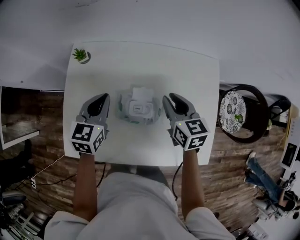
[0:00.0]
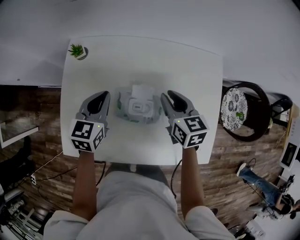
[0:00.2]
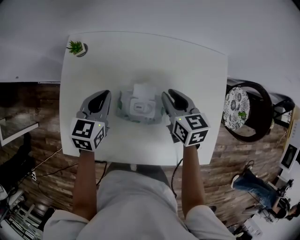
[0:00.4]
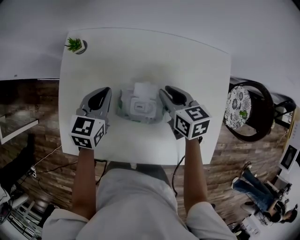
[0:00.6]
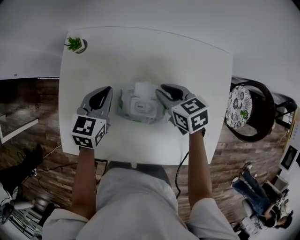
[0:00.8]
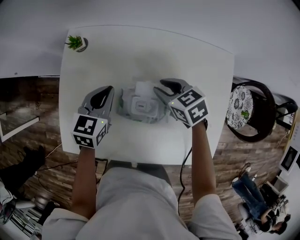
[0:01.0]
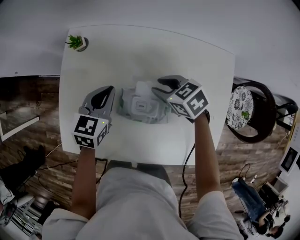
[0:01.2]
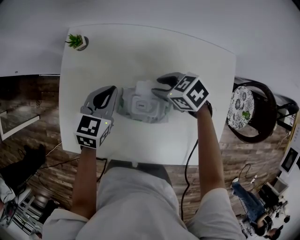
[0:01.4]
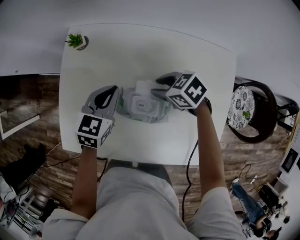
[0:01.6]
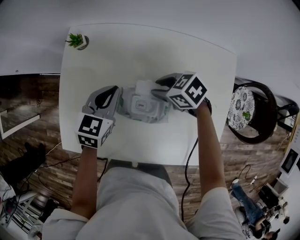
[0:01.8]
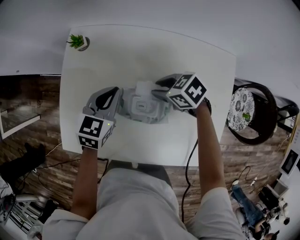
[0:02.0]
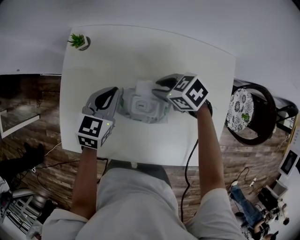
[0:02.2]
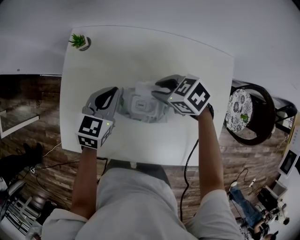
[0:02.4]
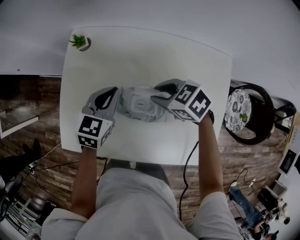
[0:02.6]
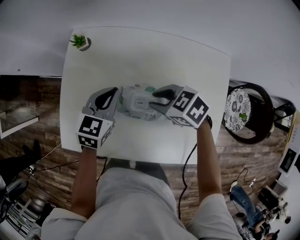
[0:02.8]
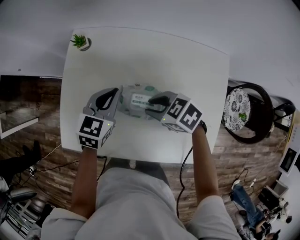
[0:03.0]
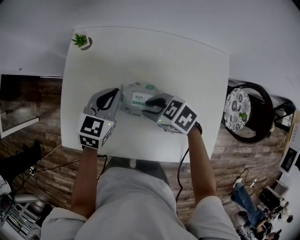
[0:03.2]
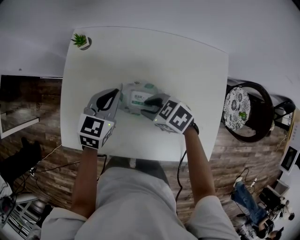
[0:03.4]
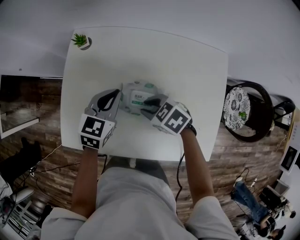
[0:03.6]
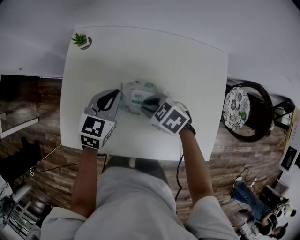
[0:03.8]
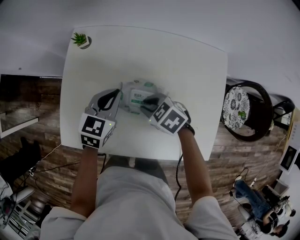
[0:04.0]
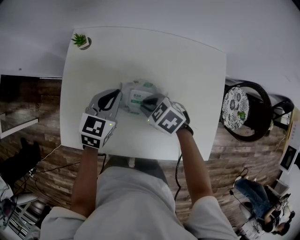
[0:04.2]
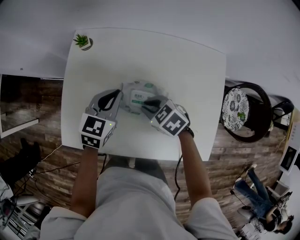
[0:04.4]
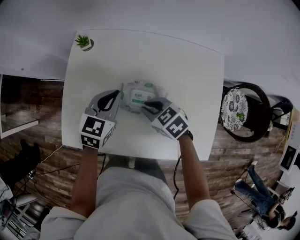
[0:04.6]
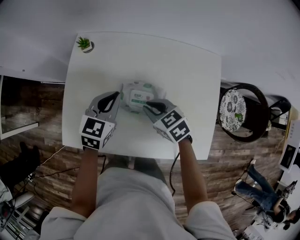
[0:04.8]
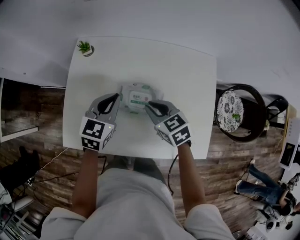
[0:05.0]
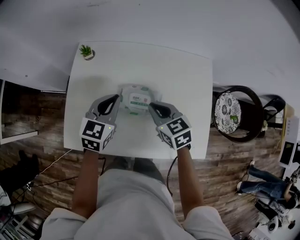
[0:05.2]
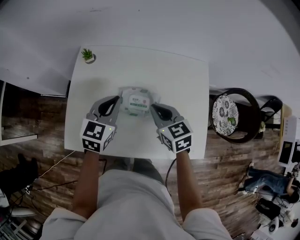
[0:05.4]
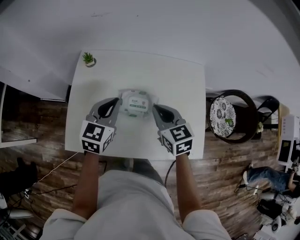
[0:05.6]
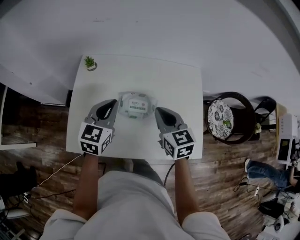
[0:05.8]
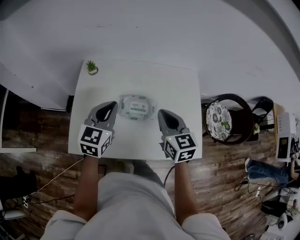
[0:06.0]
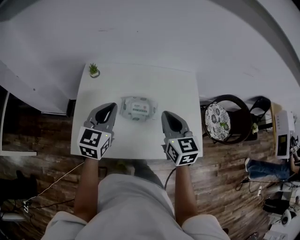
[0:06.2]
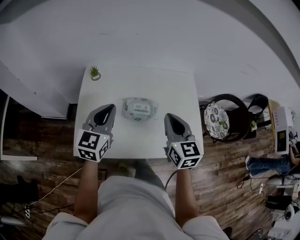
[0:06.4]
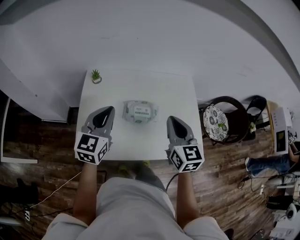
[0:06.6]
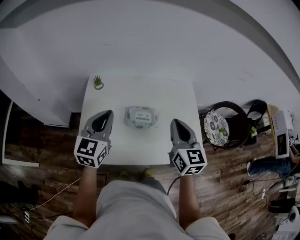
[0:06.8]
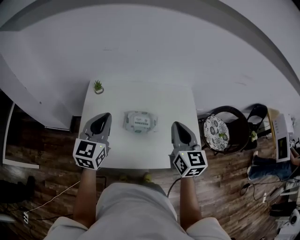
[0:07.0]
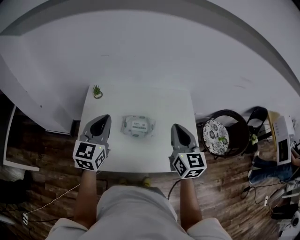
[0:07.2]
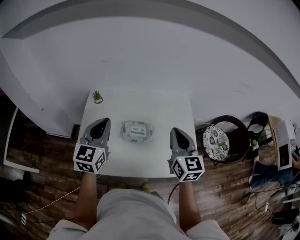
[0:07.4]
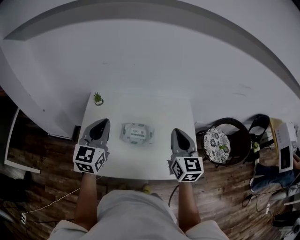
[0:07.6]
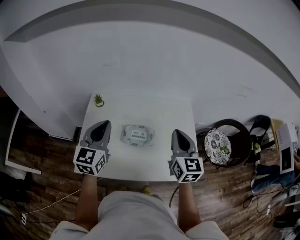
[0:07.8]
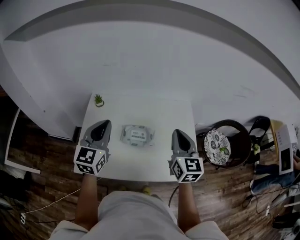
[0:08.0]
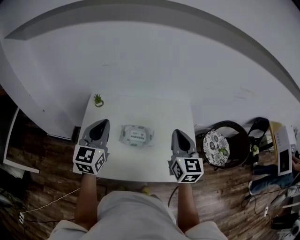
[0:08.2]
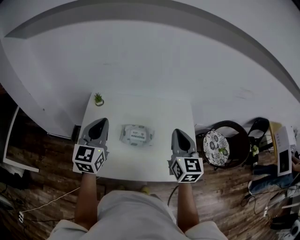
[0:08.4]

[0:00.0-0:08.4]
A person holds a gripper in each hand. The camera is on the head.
0:00.0 to 0:01.4: The right gripper goes approximately 10 cm downward, and rotates roughly 50 degrees. Meanwhile the left gripper shifts about 5 cm downward.
0:01.4 to 0:02.8: The right gripper is displaced upward by some 5 cm.
0:02.8 to 0:04.2: The right gripper shifts by roughly 5 cm.
0:04.2 to 0:05.6: The right gripper shifts roughly 15 cm upward, and turns by roughly 50 degrees; the left gripper heads upward and backward, covering about 10 cm.
0:05.6 to 0:07.0: The left gripper heads upward, backward and to the left, covering some 15 cm. Meanwhile the right gripper heads upward and backward, covering about 15 cm, and turns by about 30 degrees.
0:07.0 to 0:08.4: The right gripper changes place by some 5 cm.

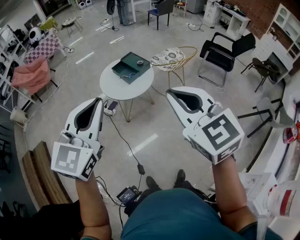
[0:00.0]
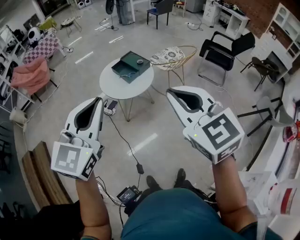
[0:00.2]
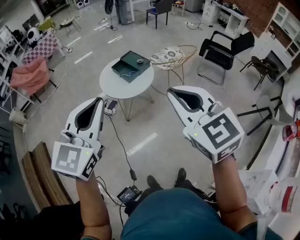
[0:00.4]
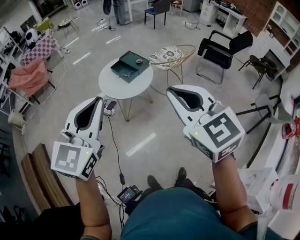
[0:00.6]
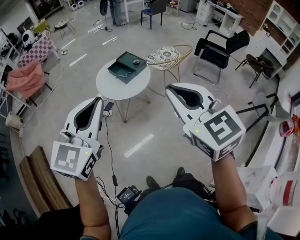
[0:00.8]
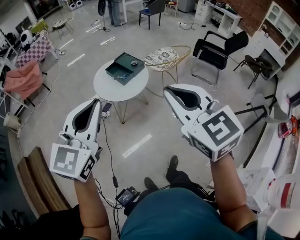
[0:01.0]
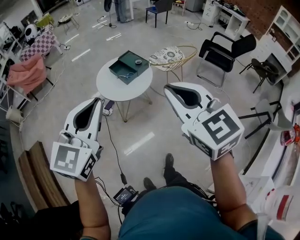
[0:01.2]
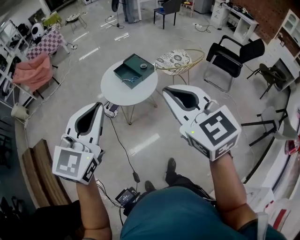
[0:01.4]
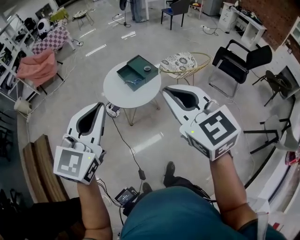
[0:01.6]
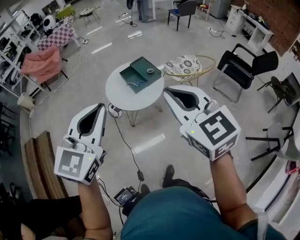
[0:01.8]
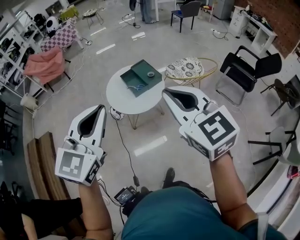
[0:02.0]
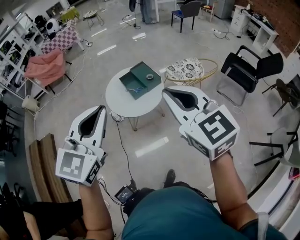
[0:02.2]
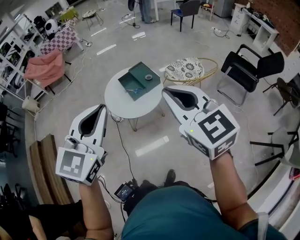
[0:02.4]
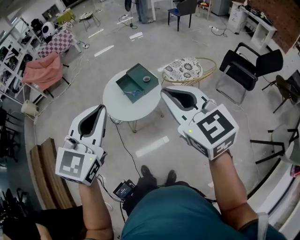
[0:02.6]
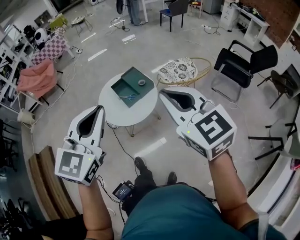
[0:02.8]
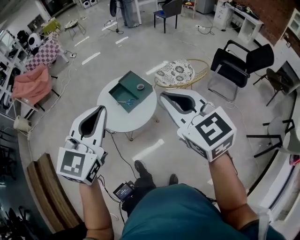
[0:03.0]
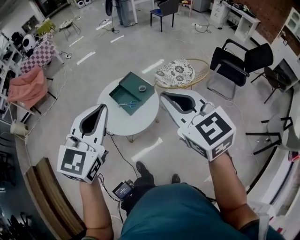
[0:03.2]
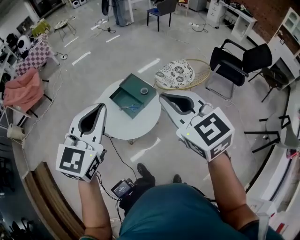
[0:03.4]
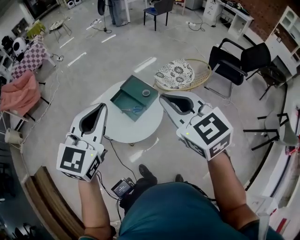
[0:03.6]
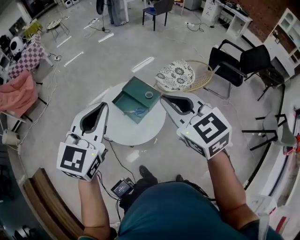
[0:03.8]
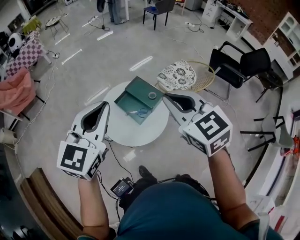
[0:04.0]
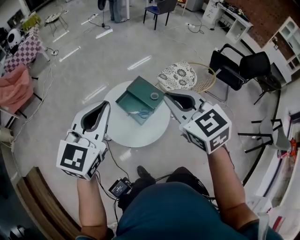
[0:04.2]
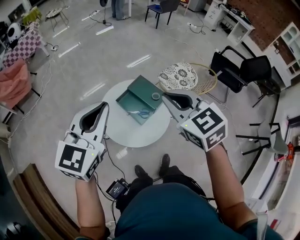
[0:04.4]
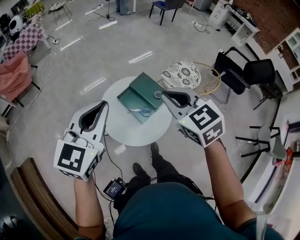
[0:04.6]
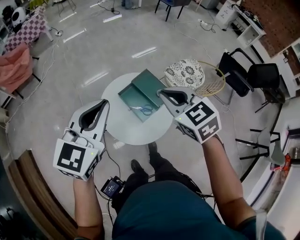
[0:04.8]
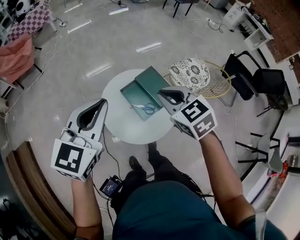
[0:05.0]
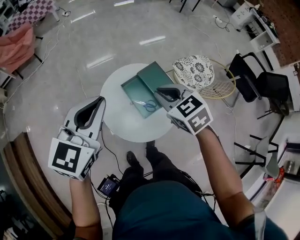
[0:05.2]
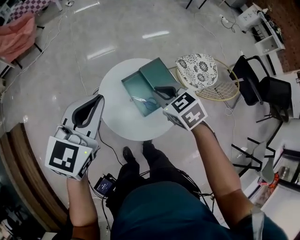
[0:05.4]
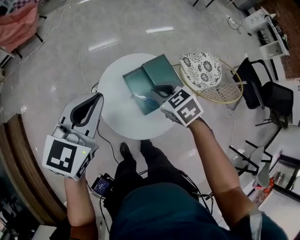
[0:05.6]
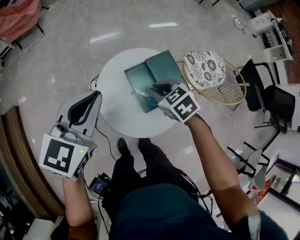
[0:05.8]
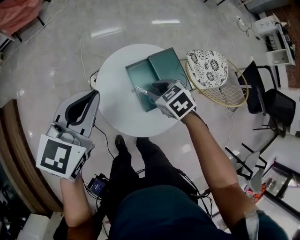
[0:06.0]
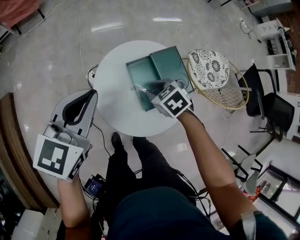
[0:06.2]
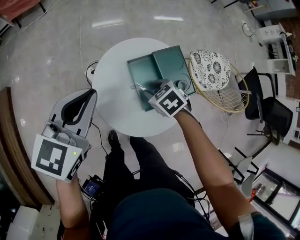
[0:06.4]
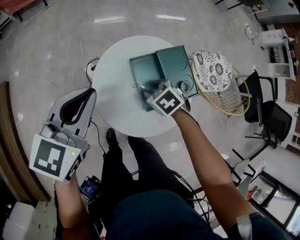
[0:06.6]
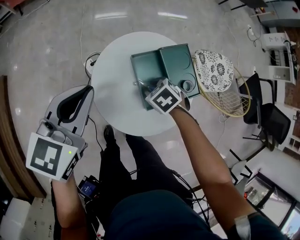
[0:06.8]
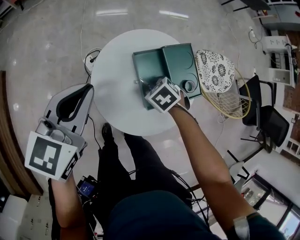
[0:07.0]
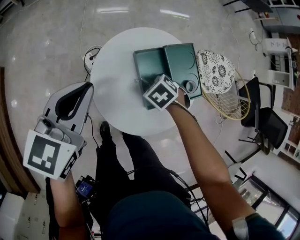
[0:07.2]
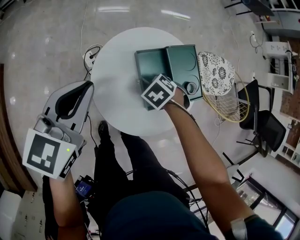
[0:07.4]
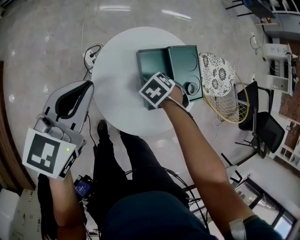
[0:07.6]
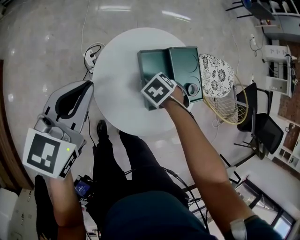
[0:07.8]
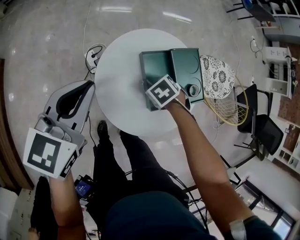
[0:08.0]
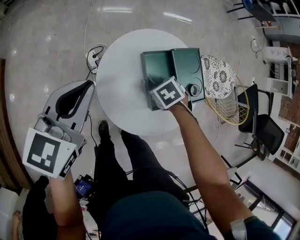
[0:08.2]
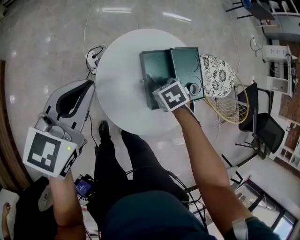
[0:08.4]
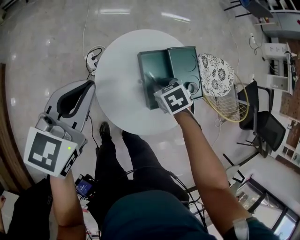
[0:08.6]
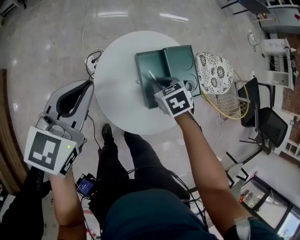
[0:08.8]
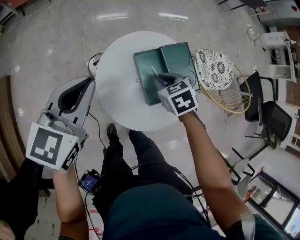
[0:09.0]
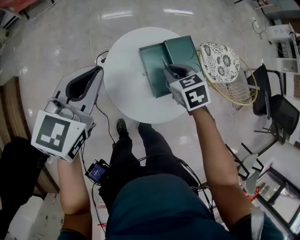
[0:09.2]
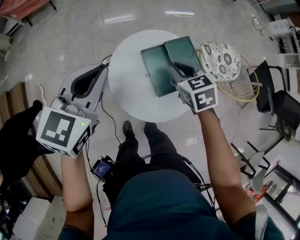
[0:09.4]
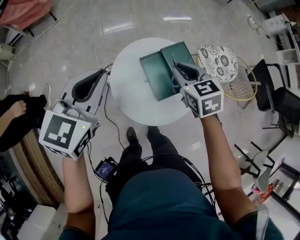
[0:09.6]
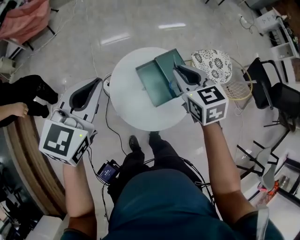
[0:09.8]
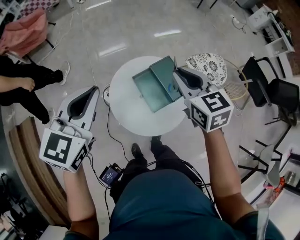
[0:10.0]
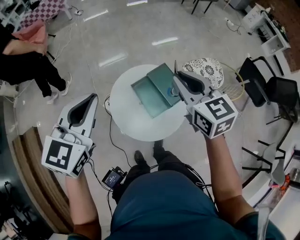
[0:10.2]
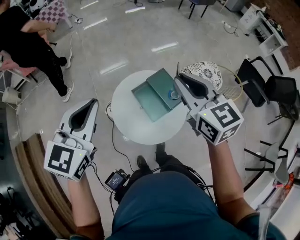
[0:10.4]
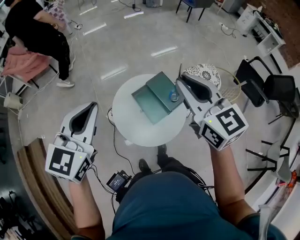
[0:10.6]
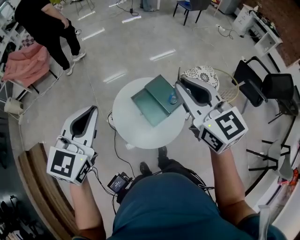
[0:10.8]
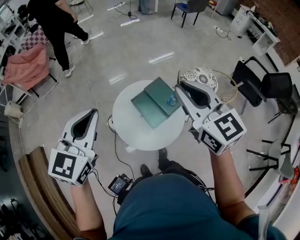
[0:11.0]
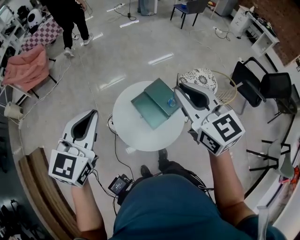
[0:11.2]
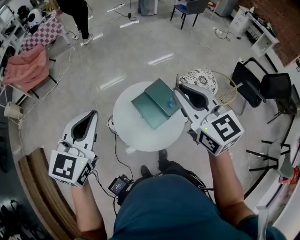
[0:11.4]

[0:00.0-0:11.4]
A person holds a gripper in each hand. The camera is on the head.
0:00.0 to 0:01.4: The grippers both shift forward by roughly 15 cm.
0:01.4 to 0:02.8: Both grippers move forward and to the right, approximately 35 cm.
0:02.8 to 0:04.2: The pair of grippers is taken to the left and forward, about 60 cm.
0:04.2 to 0:05.6: The grippers both shift downward and forward by about 40 cm. The right gripper swivels some 40 degrees. The left gripper rotates approximately 20 degrees.
0:05.6 to 0:07.2: Both grippers travel together downward, roughly 25 cm. The right gripper swivels some 30 degrees, and opens.
0:07.2 to 0:08.6: The grippers move only a little.
0:08.6 to 0:10.0: The two grippers go roughly 40 cm upward. The right gripper tips its fingers upward by about 50 degrees.
0:10.0 to 0:11.4: The left gripper moves upward, approximately 5 cm, while the right gripper heads upward and backward, covering approximately 15 cm.

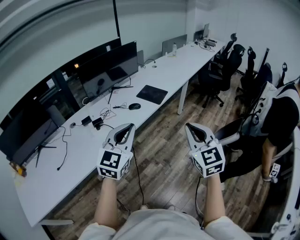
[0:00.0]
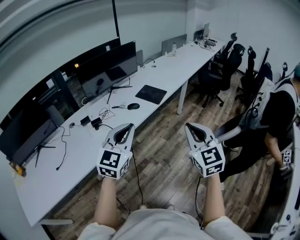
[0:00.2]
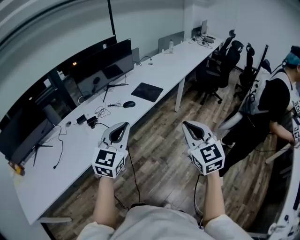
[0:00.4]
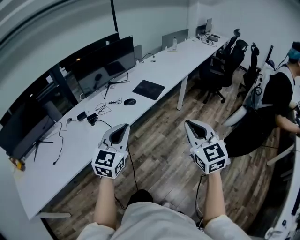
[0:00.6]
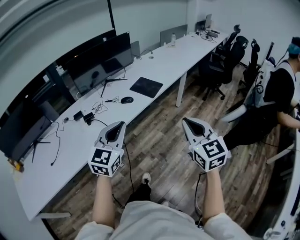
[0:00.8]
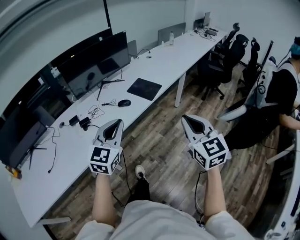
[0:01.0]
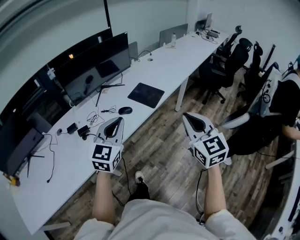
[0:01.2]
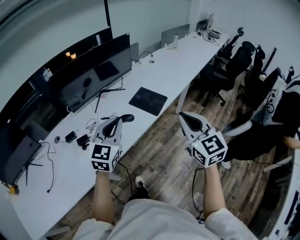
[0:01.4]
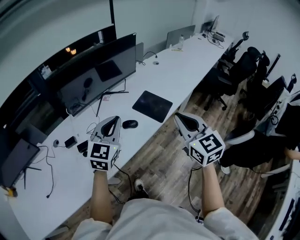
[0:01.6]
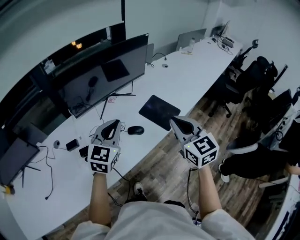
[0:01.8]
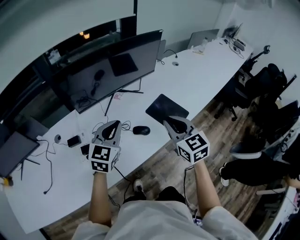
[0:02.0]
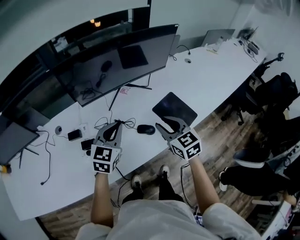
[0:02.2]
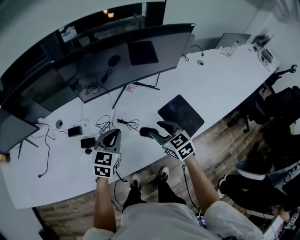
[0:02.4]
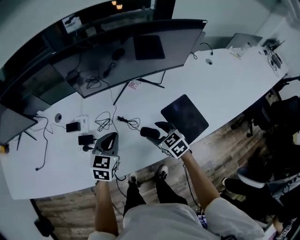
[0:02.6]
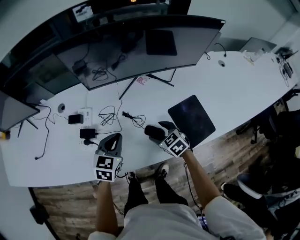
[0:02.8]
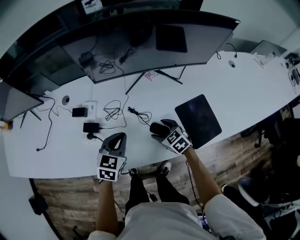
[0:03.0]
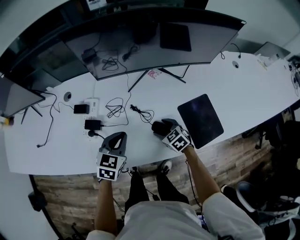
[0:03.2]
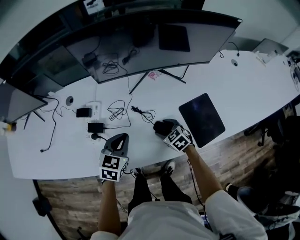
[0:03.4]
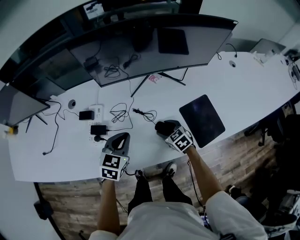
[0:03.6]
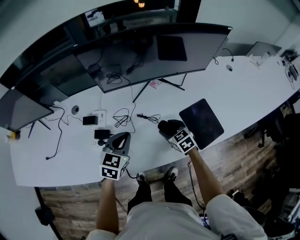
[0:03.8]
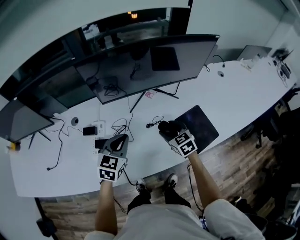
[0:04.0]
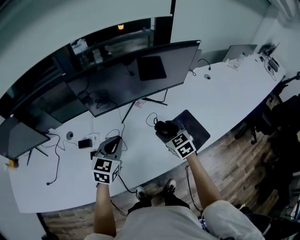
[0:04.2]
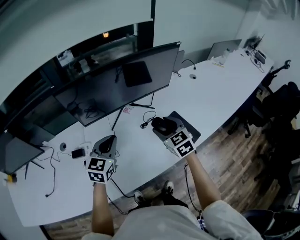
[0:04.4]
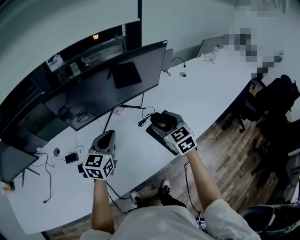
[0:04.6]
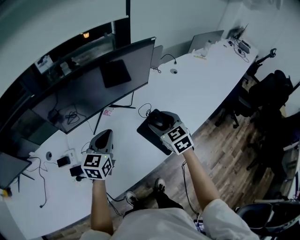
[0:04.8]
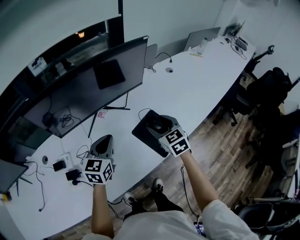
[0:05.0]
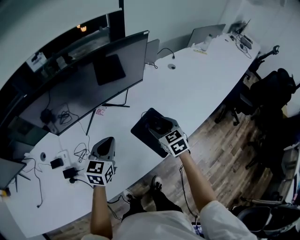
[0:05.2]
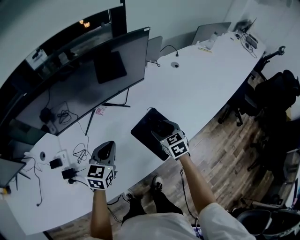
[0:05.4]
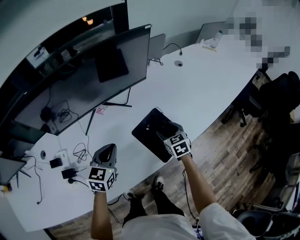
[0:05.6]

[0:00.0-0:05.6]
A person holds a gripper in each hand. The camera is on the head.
0:00.0 to 0:01.4: The two grippers go roughly 30 cm forward.
0:01.4 to 0:02.8: The left gripper heads downward, covering some 25 cm, and rotates roughly 40 degrees. Meanwhile the right gripper travels downward by about 35 cm, points its fingers about 40 degrees further downward, and opens.
0:02.8 to 0:04.2: The two grippers go roughly 10 cm upward. The right gripper swivels approximately 20 degrees.
0:04.2 to 0:05.6: Both grippers travel together to the right and downward, some 20 cm. The right gripper turns by approximately 20 degrees.
